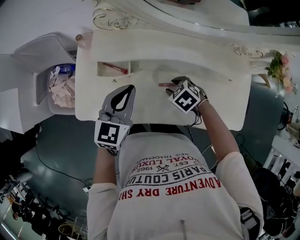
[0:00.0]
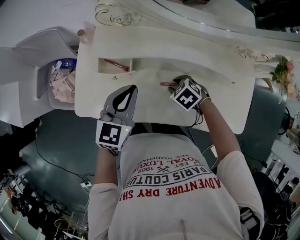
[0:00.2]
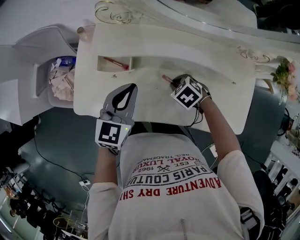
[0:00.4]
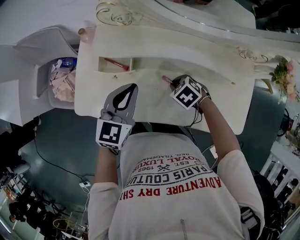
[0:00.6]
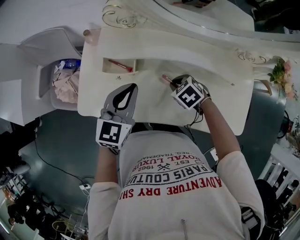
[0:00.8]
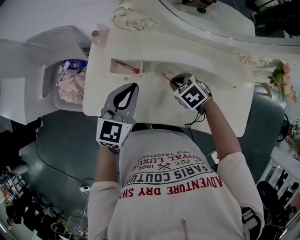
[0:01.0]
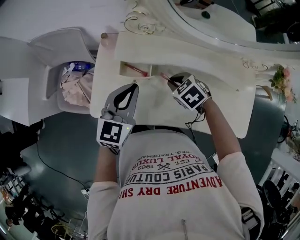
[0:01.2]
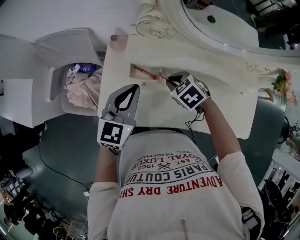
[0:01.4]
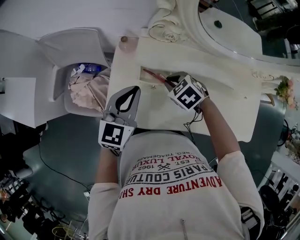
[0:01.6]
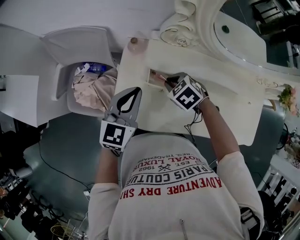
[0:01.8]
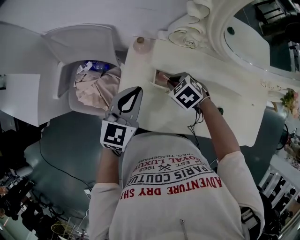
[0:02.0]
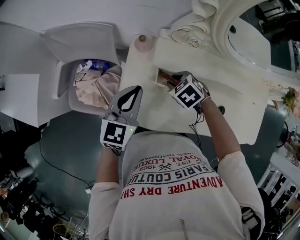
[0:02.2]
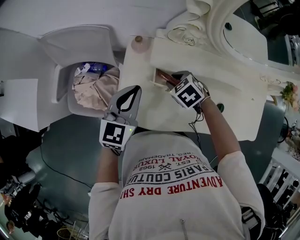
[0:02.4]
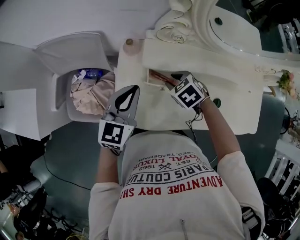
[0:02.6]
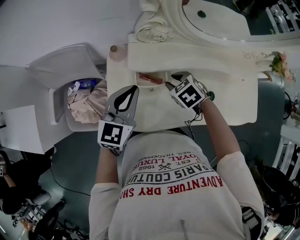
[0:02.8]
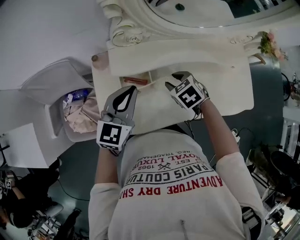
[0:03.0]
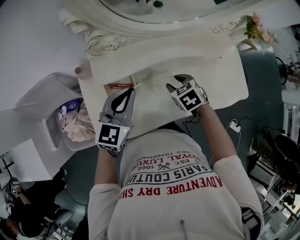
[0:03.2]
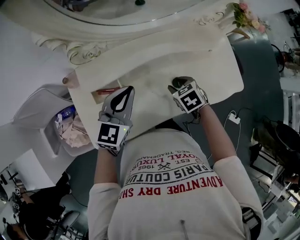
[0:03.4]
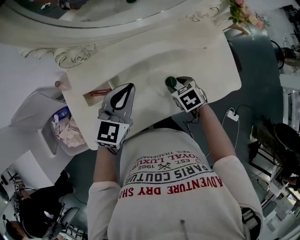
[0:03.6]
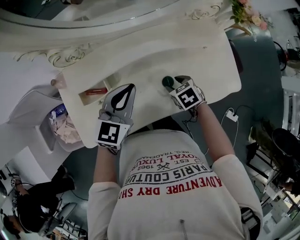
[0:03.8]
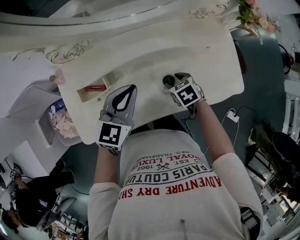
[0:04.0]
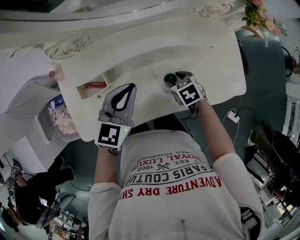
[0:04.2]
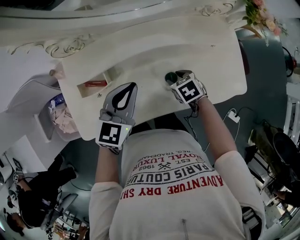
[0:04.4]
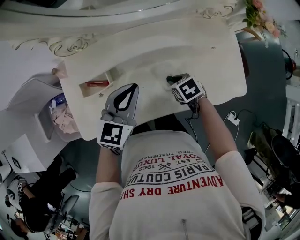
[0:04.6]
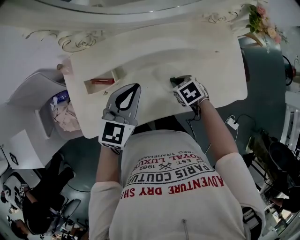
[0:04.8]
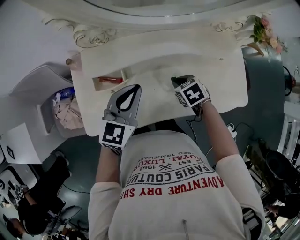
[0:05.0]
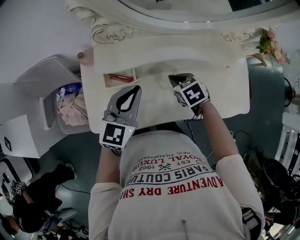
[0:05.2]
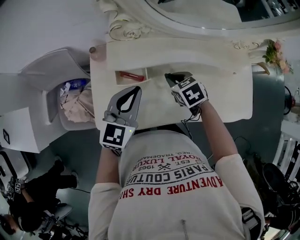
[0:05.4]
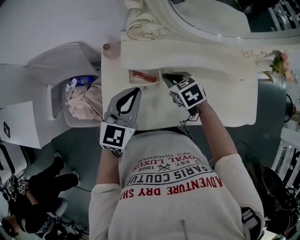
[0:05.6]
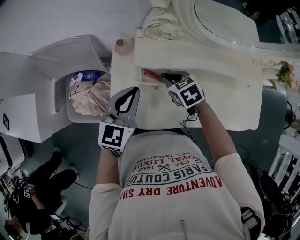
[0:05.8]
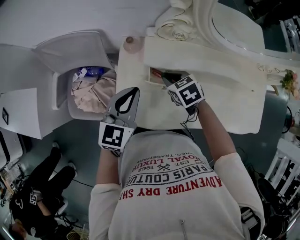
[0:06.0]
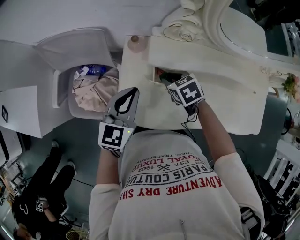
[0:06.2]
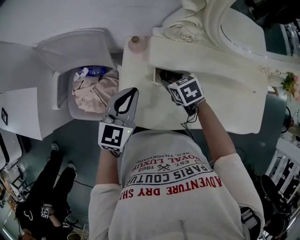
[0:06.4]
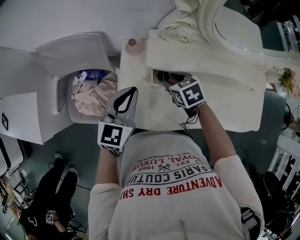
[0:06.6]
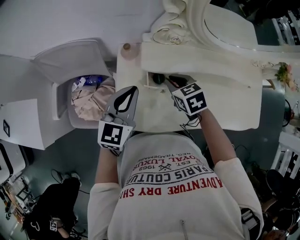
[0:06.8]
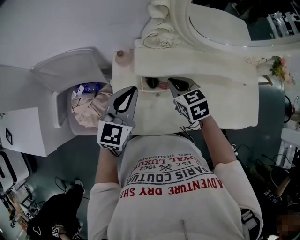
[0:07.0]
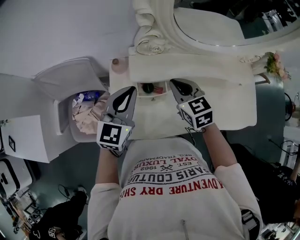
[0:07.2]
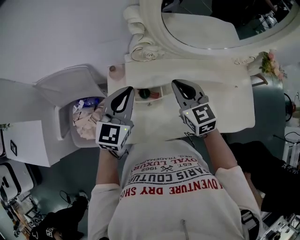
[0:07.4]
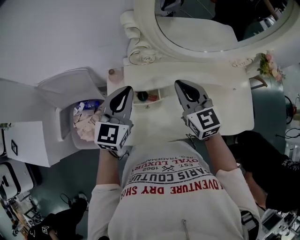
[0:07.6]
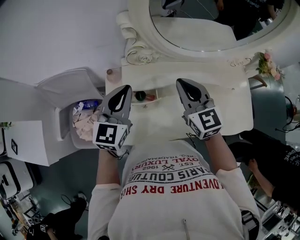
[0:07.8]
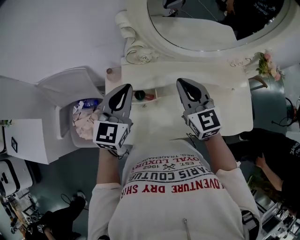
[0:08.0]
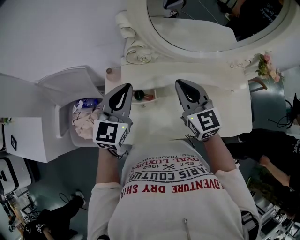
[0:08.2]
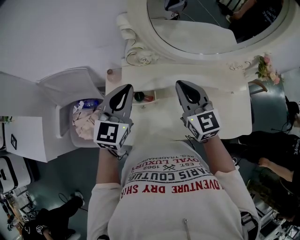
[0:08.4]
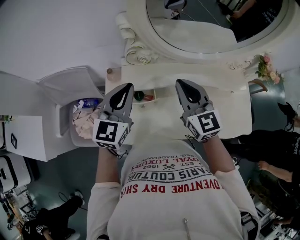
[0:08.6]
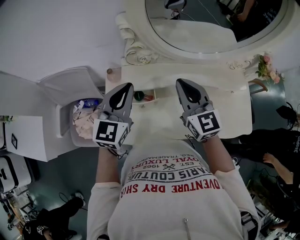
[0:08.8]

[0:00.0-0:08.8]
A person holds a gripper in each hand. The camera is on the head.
0:00.0 to 0:01.4: The left gripper heads to the left and upward, covering about 10 cm. Meanwhile the right gripper travels to the left, forward and upward by roughly 15 cm, and closes its fingers.
0:01.4 to 0:03.0: The right gripper swivels about 20 degrees, and opens up.
0:03.0 to 0:04.4: The right gripper moves to the right and downward, roughly 20 cm, and turns by roughly 20 degrees, while the left gripper heads to the right, covering some 20 cm.
0:04.4 to 0:05.8: Both grippers move to the left, roughly 25 cm. The right gripper changes its angle by some 20 degrees, and closes.
0:05.8 to 0:07.4: The right gripper heads upward, covering approximately 15 cm, tilts its fingers about 30 degrees upward, and opens, then closes once more. Meanwhile the left gripper shifts some 5 cm upward, and reaches about 5 cm to the left, then returns.
0:07.4 to 0:08.8: The right gripper heads upward and to the right, covering some 10 cm. Meanwhile the left gripper shifts by about 5 cm.

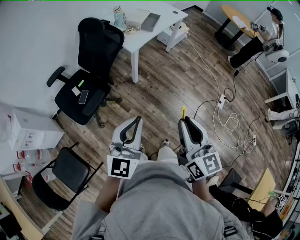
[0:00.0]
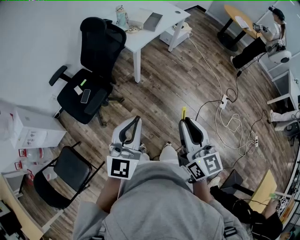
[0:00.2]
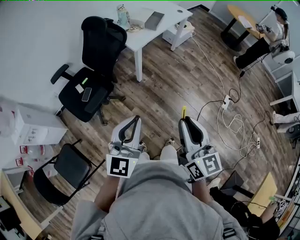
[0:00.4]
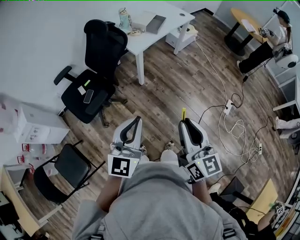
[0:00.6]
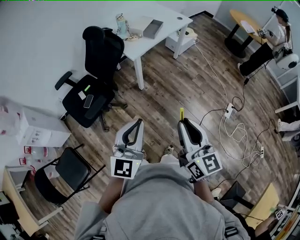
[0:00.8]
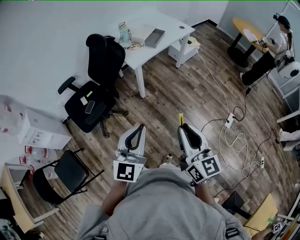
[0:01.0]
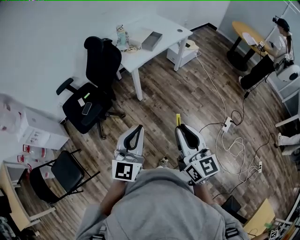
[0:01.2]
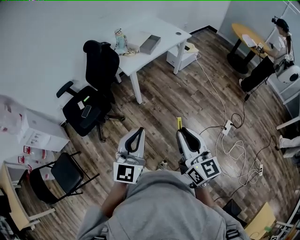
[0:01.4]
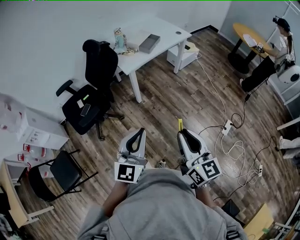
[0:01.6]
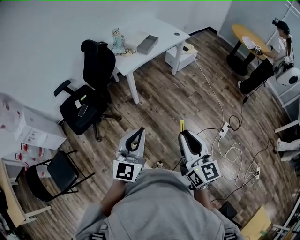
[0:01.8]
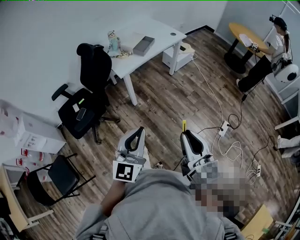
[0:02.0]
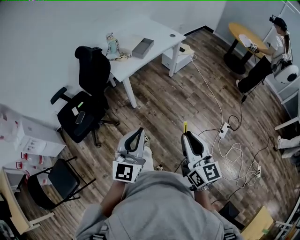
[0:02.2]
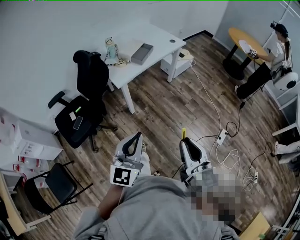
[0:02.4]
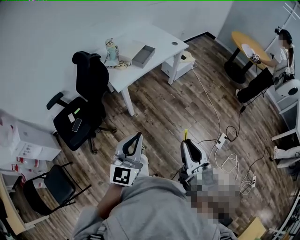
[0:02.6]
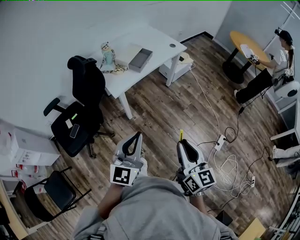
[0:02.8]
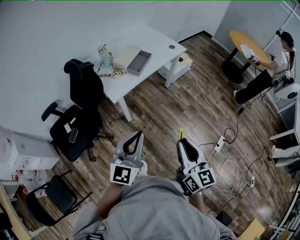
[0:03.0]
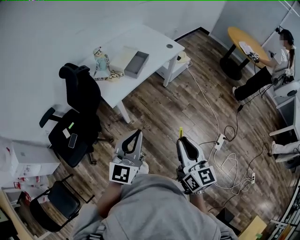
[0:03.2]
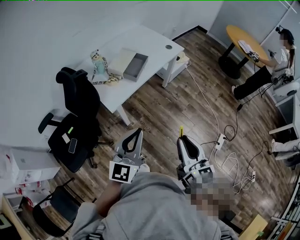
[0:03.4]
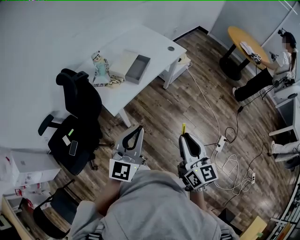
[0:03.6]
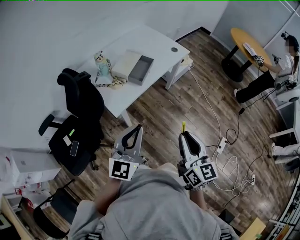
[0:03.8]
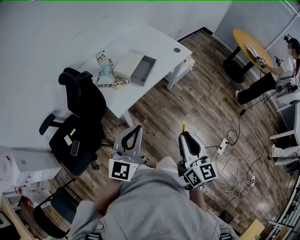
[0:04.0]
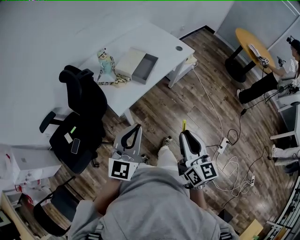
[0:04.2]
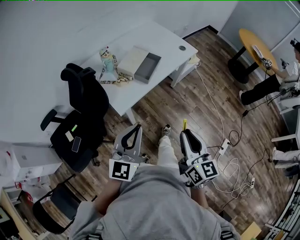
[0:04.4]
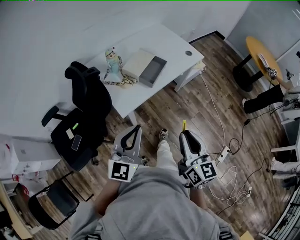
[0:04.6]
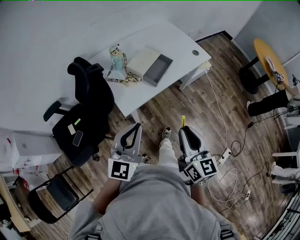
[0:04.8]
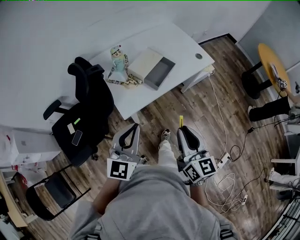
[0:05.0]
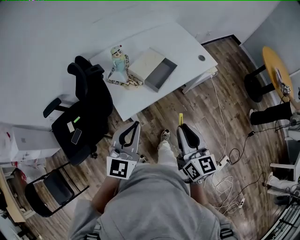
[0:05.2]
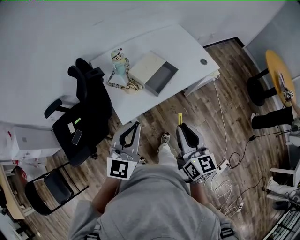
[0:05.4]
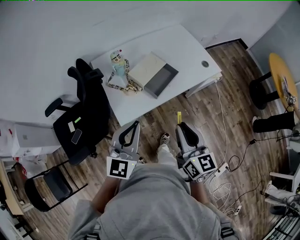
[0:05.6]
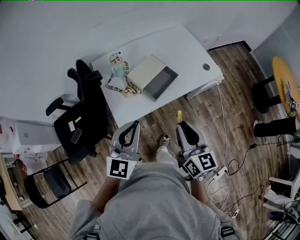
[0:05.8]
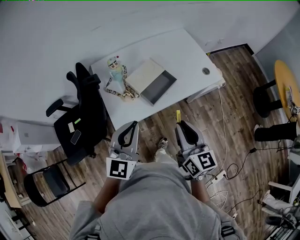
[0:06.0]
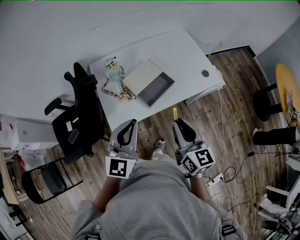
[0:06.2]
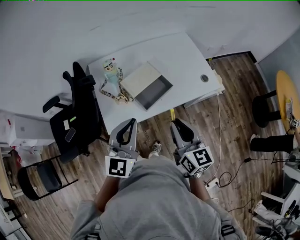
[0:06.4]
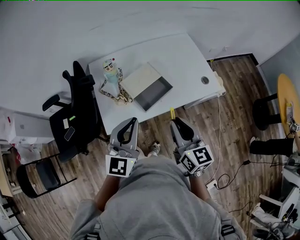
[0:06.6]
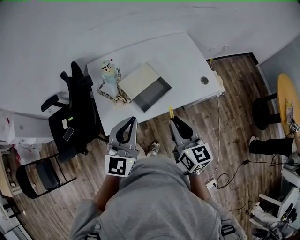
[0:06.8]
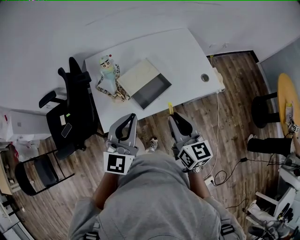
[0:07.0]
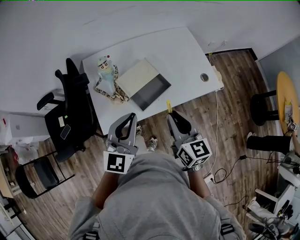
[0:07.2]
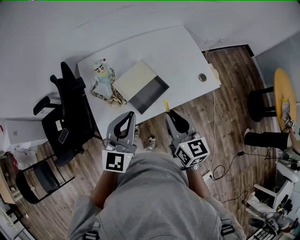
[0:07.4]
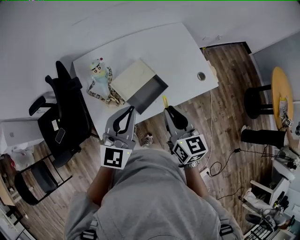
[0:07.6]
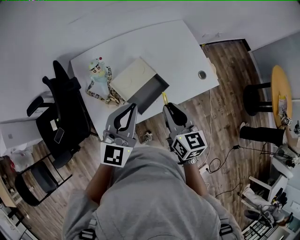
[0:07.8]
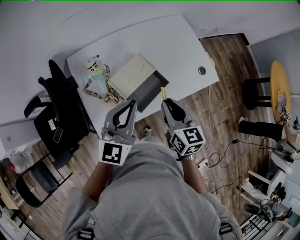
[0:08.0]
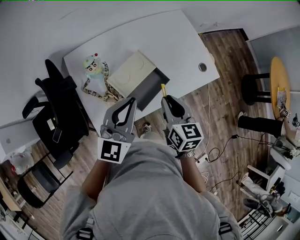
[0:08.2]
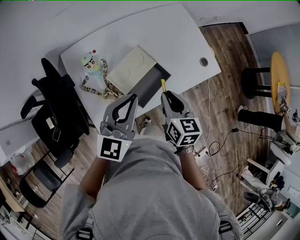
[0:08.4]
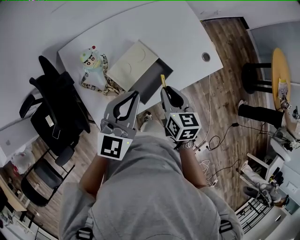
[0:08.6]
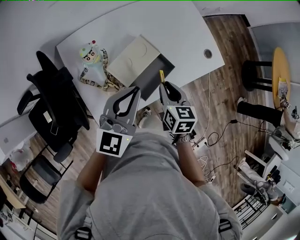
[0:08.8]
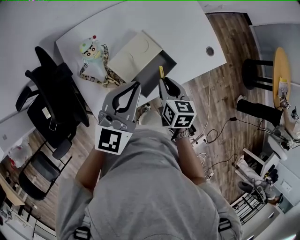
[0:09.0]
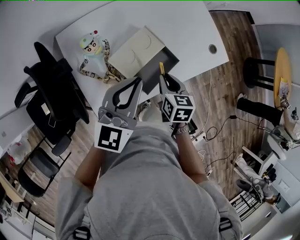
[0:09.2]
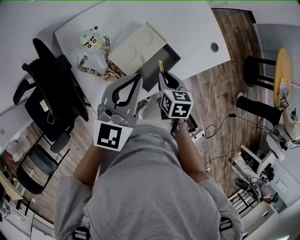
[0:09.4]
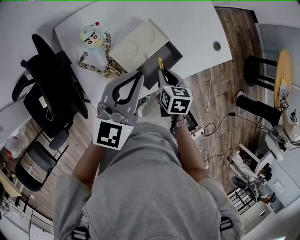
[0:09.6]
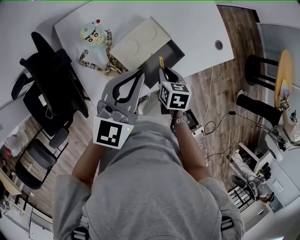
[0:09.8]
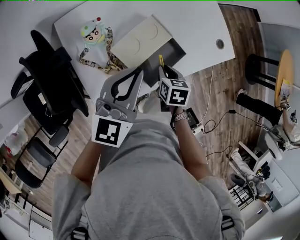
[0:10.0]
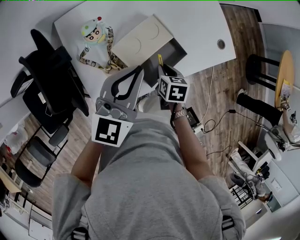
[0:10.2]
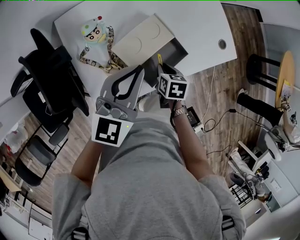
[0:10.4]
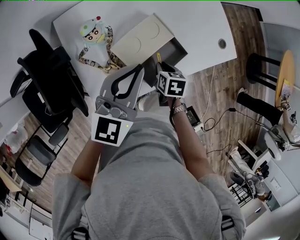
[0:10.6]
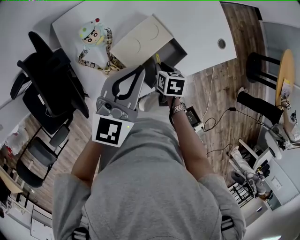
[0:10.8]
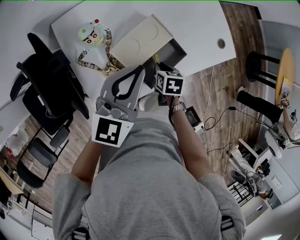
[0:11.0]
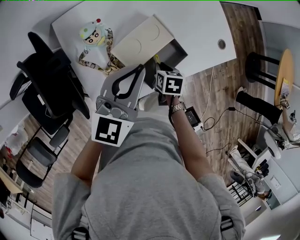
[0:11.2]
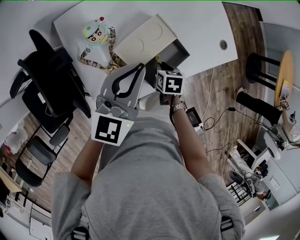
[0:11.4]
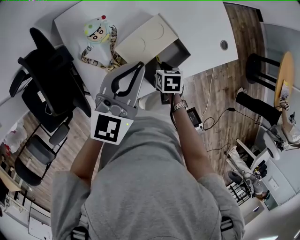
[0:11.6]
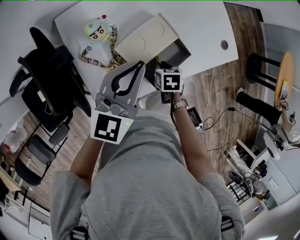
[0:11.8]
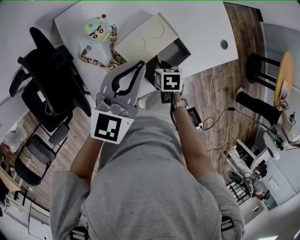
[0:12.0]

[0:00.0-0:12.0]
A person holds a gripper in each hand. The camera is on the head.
0:00.0 to 0:01.6: The grippers both shift to the right by about 20 cm.
0:01.6 to 0:03.0: Both grippers move forward, some 25 cm.
0:03.0 to 0:04.4: The left gripper heads forward and to the left, covering about 20 cm. The right gripper moves forward, about 15 cm.
0:04.4 to 0:06.0: The two grippers go roughly 25 cm forward. The right gripper rotates roughly 20 degrees.
0:06.0 to 0:07.6: Both grippers travel together forward, about 15 cm.
0:07.6 to 0:09.0: The left gripper shifts roughly 5 cm forward, while the right gripper travels downward and forward by approximately 15 cm, and changes its angle by roughly 30 degrees.
0:09.0 to 0:10.4: The right gripper is displaced downward by about 10 cm, and turns by some 20 degrees.
0:10.4 to 0:12.0: There are only small adjustments of the grippers.

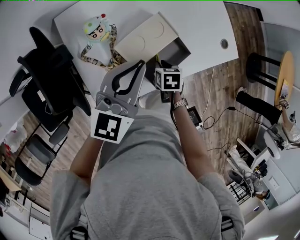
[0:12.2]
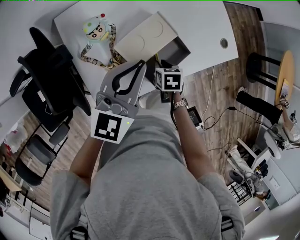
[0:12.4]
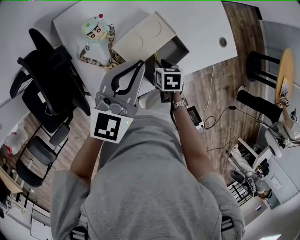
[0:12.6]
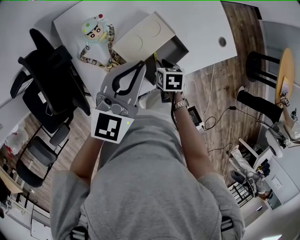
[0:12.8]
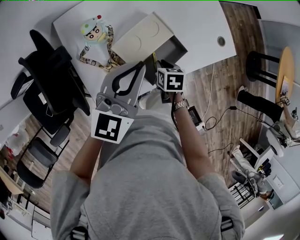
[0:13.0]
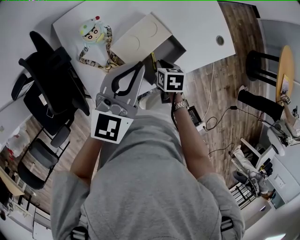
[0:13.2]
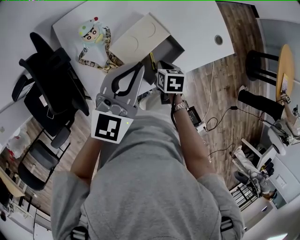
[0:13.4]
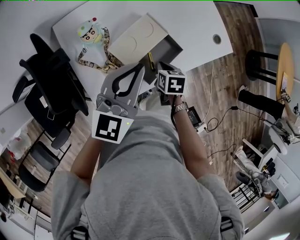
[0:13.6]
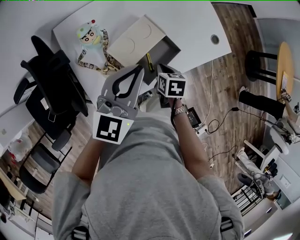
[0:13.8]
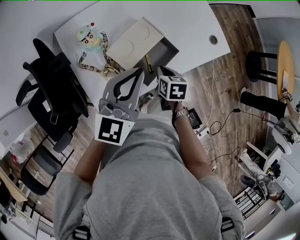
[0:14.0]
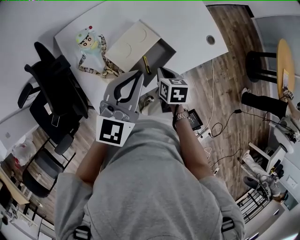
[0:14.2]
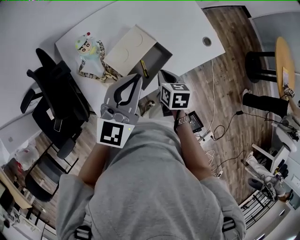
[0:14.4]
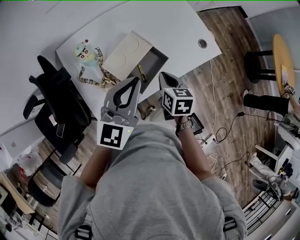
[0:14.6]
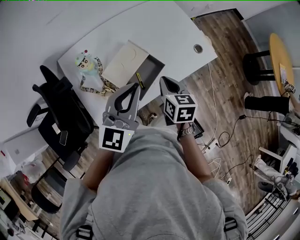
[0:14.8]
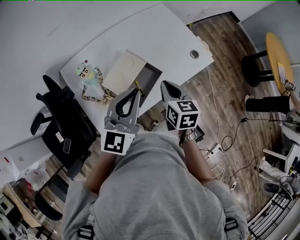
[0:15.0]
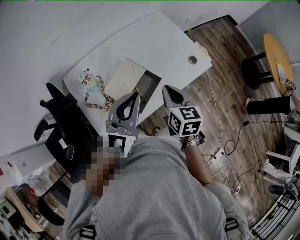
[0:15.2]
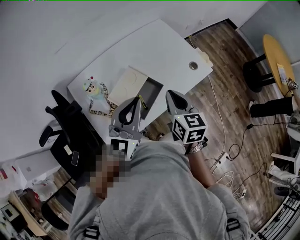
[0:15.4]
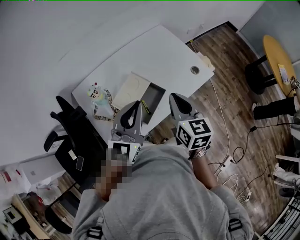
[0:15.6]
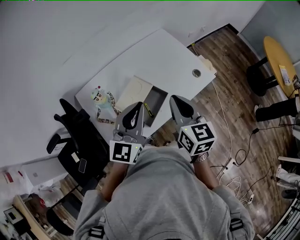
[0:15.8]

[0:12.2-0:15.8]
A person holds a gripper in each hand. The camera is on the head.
0:12.2 to 0:14.0: The left gripper moves some 5 cm. The right gripper goes about 5 cm upward.
0:14.0 to 0:15.8: The left gripper heads upward and to the right, covering about 10 cm; the right gripper moves upward, roughly 30 cm, and tips its fingers upward by roughly 40 degrees.
